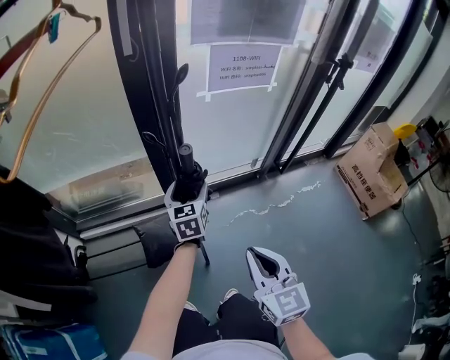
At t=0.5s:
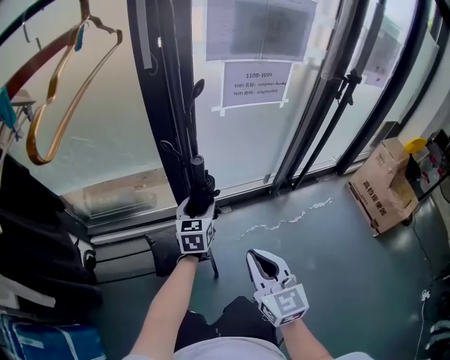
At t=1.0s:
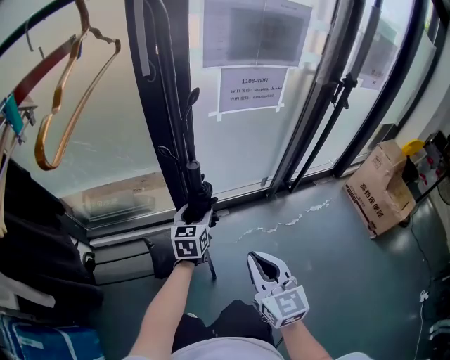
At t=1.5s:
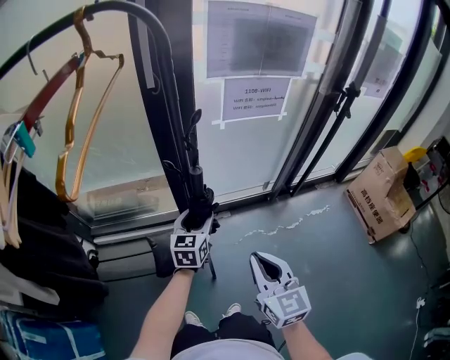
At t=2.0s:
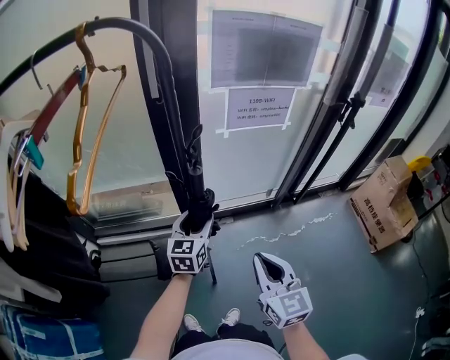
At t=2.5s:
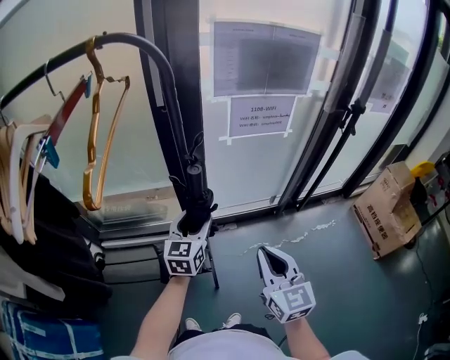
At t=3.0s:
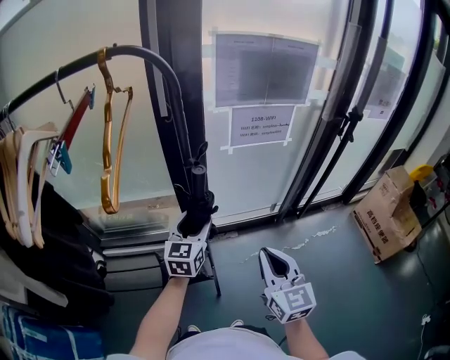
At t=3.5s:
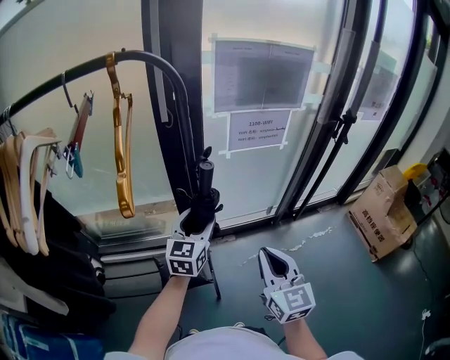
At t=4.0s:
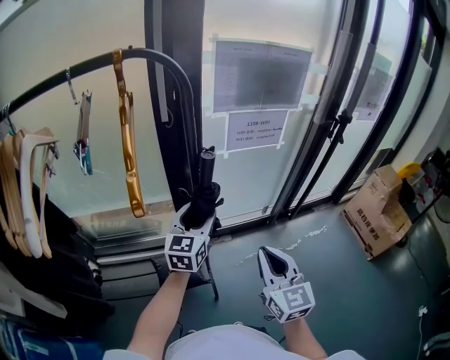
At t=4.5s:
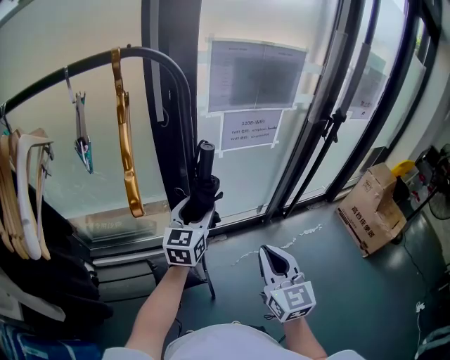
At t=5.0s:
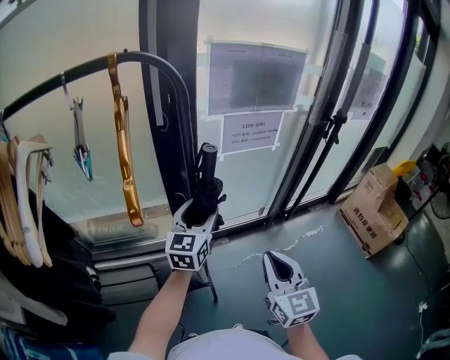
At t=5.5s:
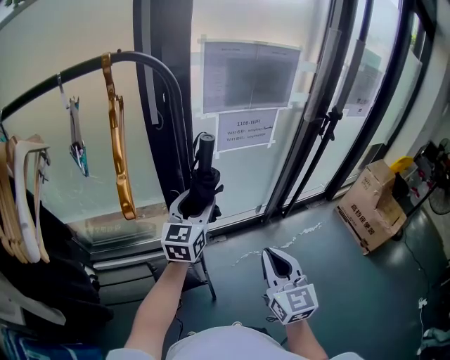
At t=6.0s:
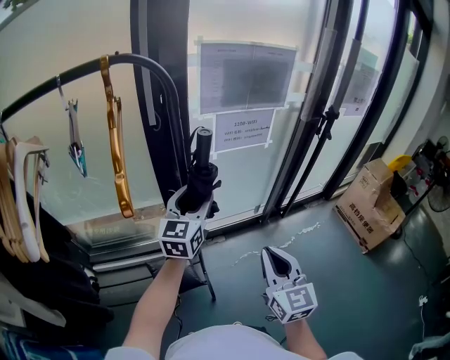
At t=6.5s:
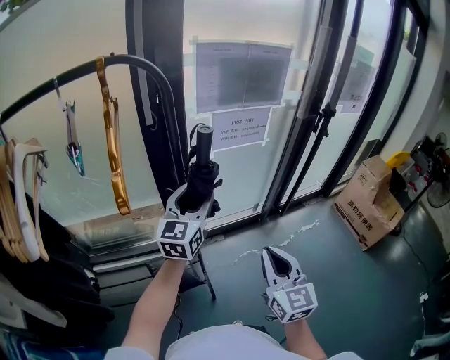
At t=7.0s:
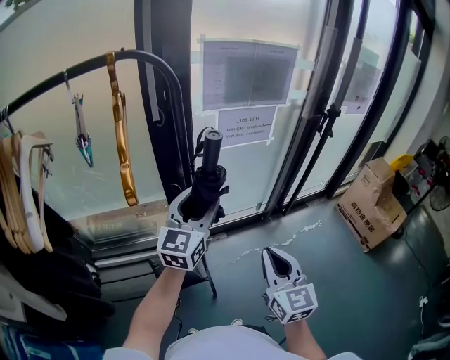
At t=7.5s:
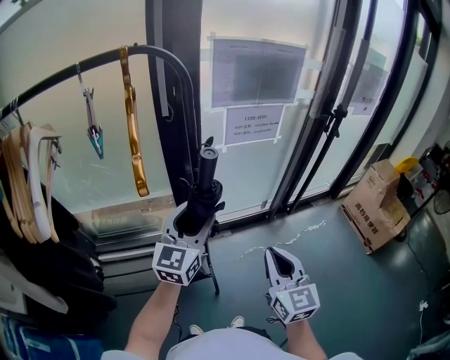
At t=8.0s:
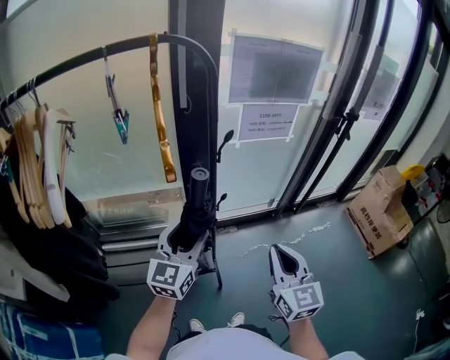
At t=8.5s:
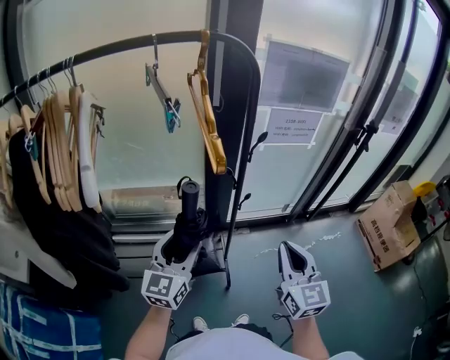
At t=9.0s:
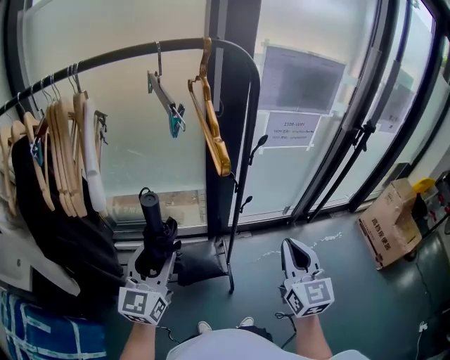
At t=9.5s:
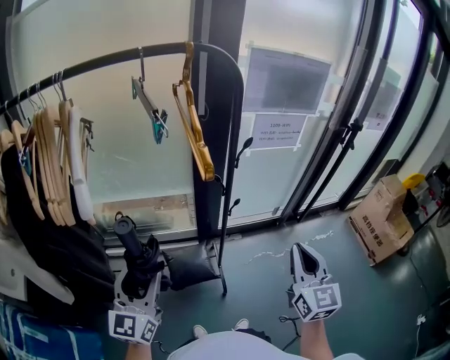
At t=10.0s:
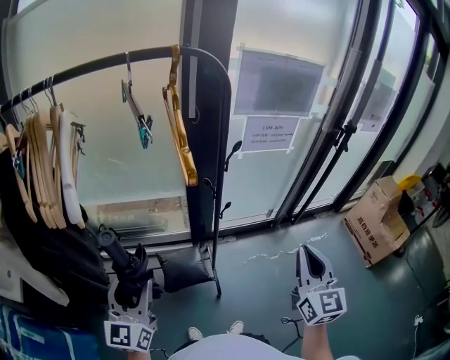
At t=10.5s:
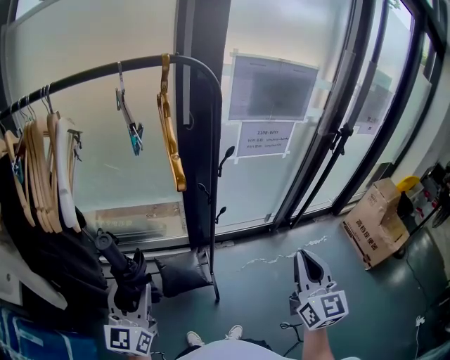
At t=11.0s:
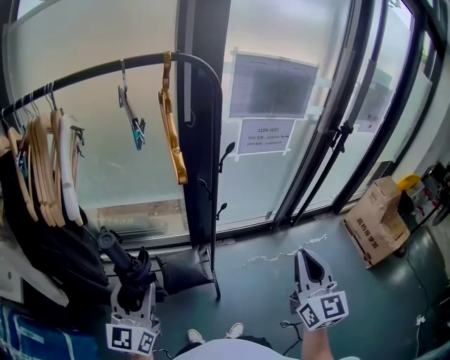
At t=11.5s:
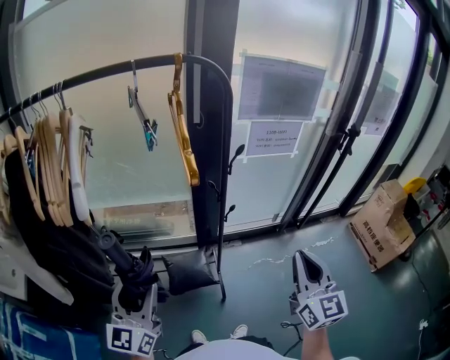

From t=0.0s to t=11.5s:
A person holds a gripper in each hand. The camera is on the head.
From t=0.0s to t=2.0s: Both grippers move upward, approximately 10 cm. The left gripper closes its fingers.
From t=2.0s to t=4.0s: The right gripper shifts some 5 cm upward; the left gripper shifts roughly 10 cm upward.
From t=4.0s to t=6.0s: The left gripper is displaced upward by approximately 5 cm.
From t=6.0s to t=7.5s: The left gripper is displaced backward by roughly 10 cm.
From t=7.5s to t=9.5s: The left gripper heads to the left and backward, covering approximately 30 cm.
From t=9.5s to t=11.5s: The grippers move only a little.

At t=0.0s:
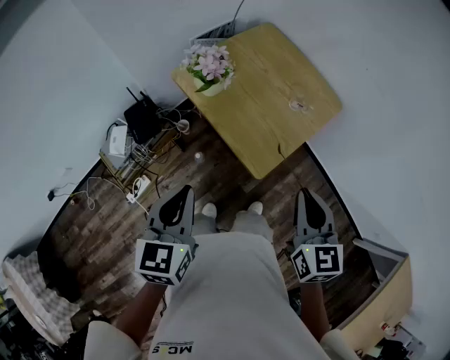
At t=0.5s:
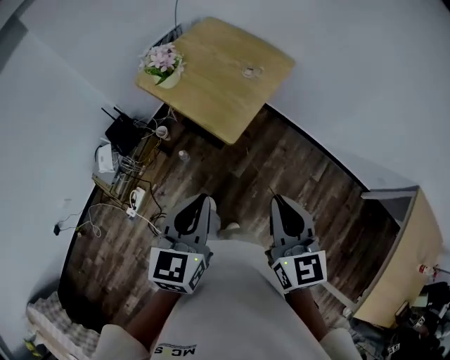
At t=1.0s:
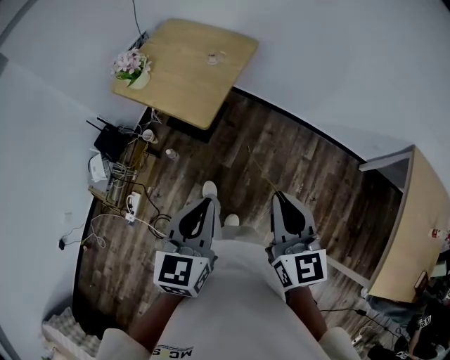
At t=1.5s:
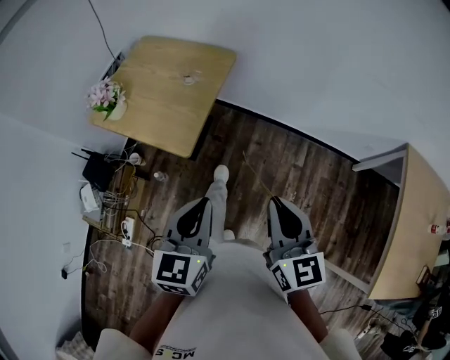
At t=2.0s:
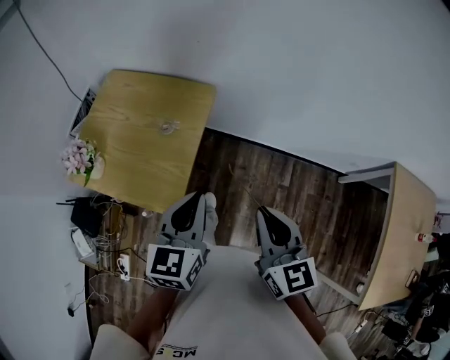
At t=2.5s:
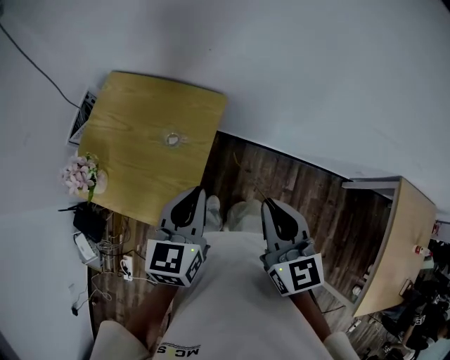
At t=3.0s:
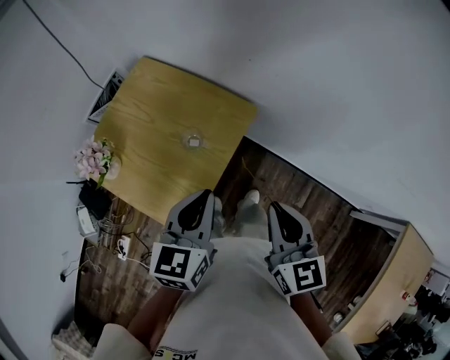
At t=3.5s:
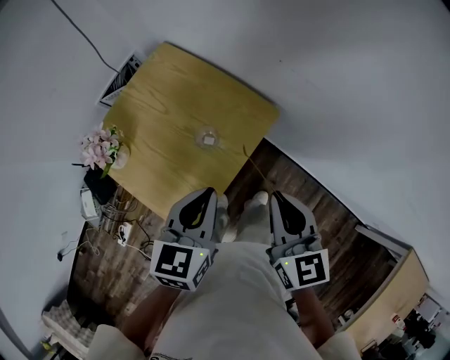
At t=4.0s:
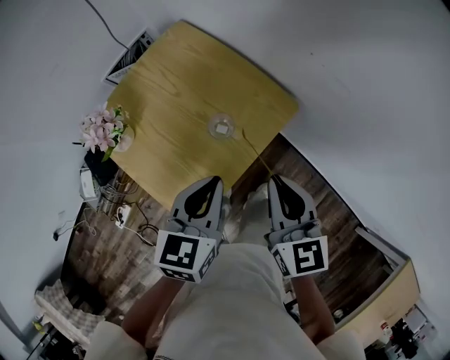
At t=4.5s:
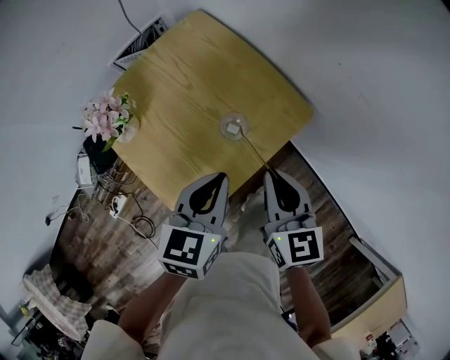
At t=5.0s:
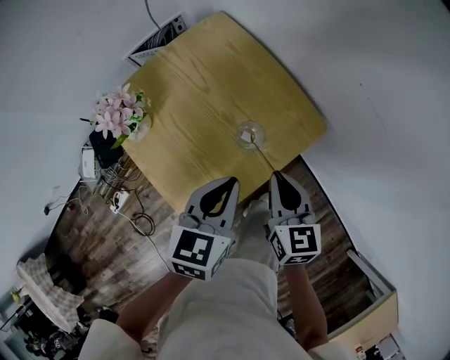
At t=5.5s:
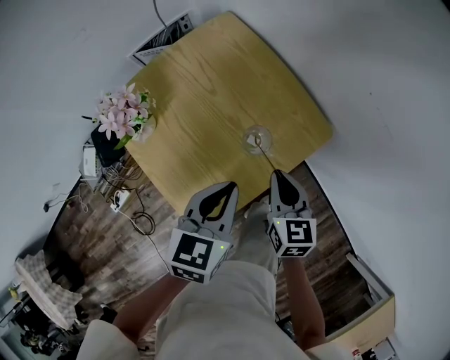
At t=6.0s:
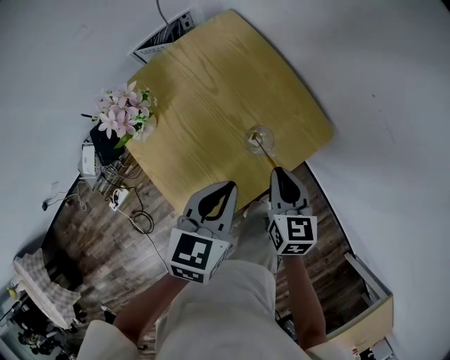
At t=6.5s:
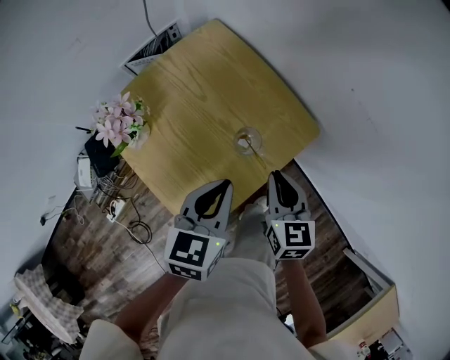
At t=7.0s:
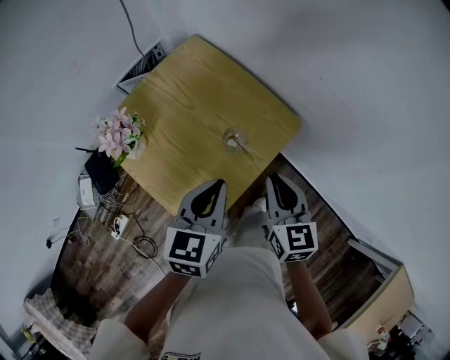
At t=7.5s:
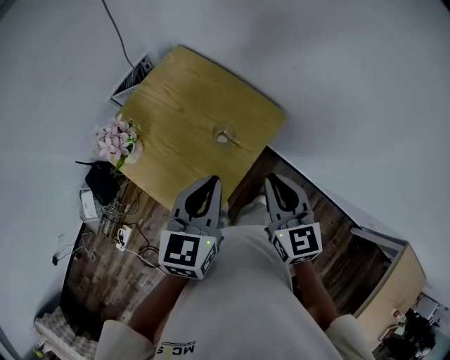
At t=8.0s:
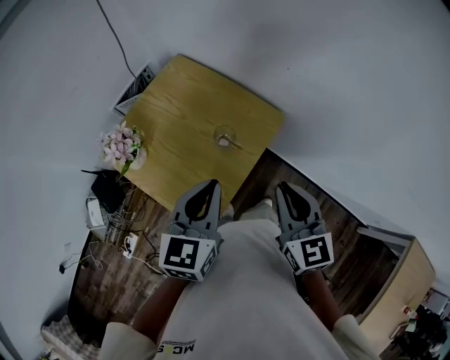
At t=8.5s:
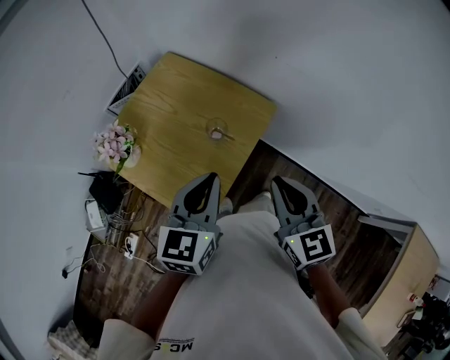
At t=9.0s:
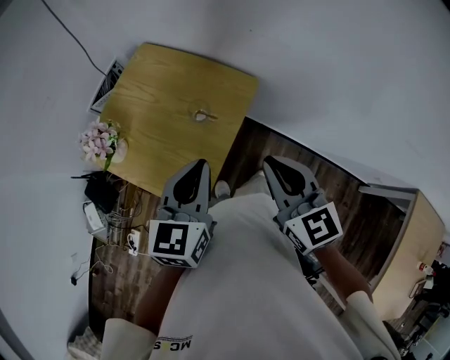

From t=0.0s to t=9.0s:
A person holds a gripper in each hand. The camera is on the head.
From t=0.0s to t=2.0s: The right gripper ends up roughly 25 cm from where it was, and turns by about 20 degrees; the left gripper changes place by approximately 35 cm, and swivels roughly 30 degrees.
From t=2.0s to t=4.5s: The right gripper ends up about 35 cm from where it was, and rotates roughly 30 degrees. Meanwhile the left gripper shifts by roughly 25 cm, and changes its angle by about 30 degrees.
From t=4.5s to t=7.0s: The right gripper moves some 10 cm downward and comes back.
From t=7.0s to t=9.0s: The right gripper travels backward and upward by approximately 15 cm. Meanwhile the left gripper shifts approximately 10 cm backward and upward.

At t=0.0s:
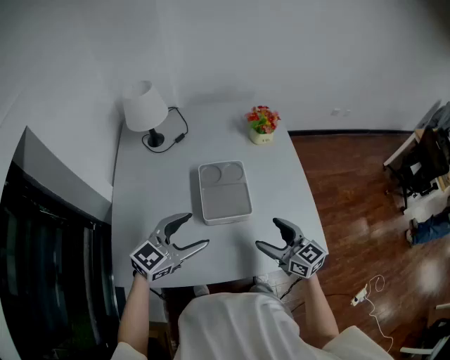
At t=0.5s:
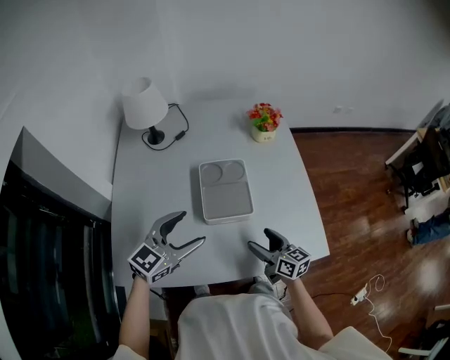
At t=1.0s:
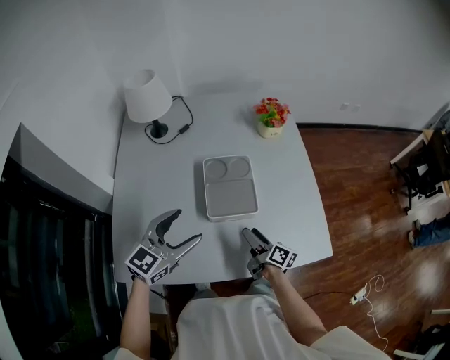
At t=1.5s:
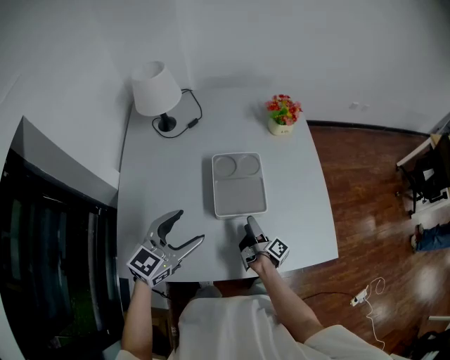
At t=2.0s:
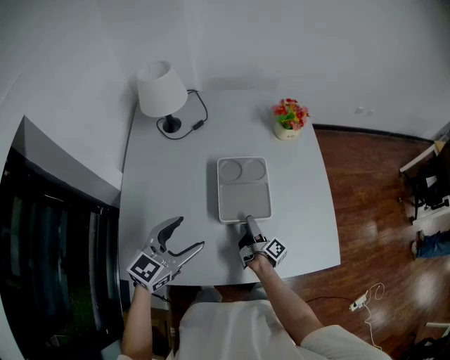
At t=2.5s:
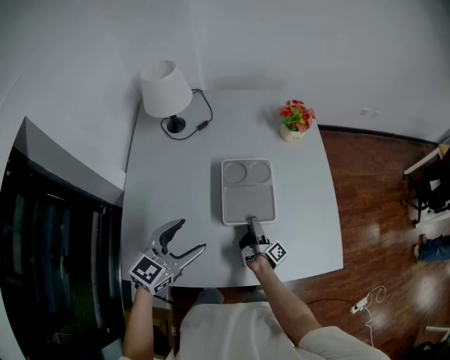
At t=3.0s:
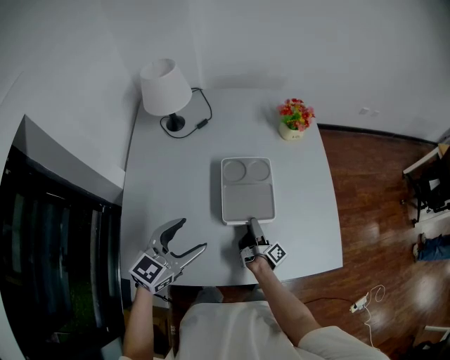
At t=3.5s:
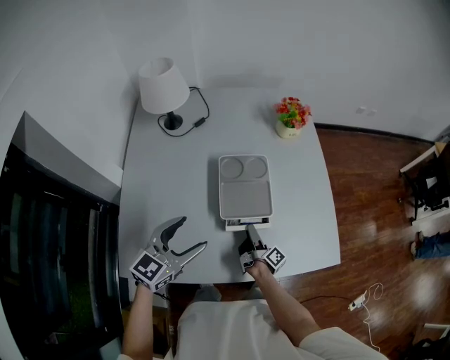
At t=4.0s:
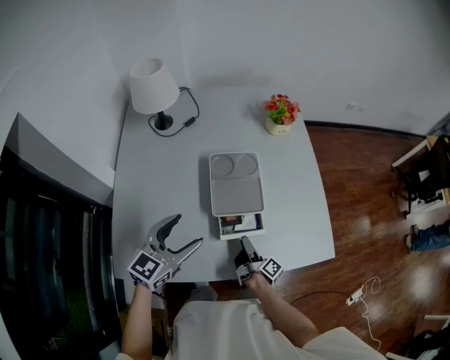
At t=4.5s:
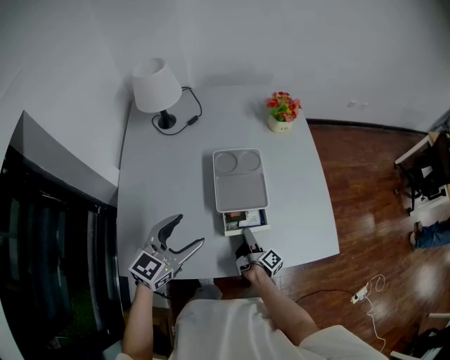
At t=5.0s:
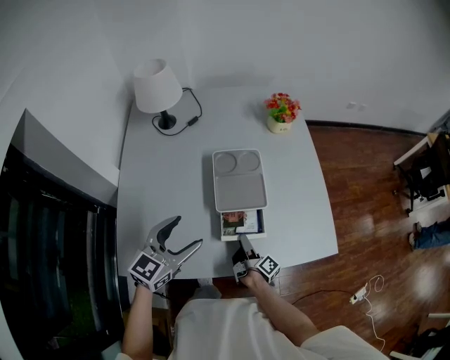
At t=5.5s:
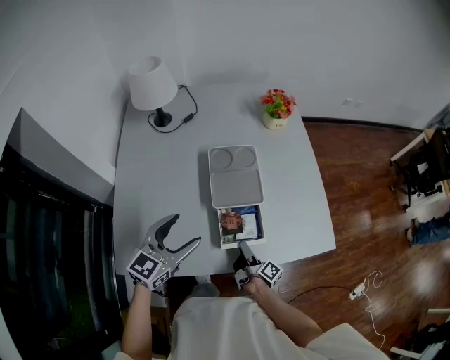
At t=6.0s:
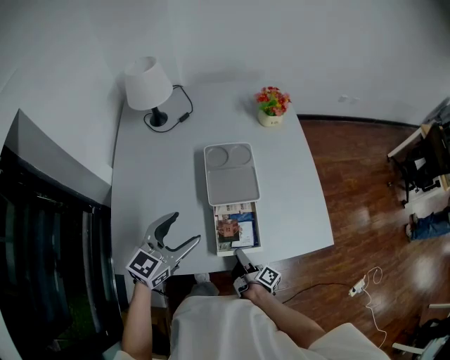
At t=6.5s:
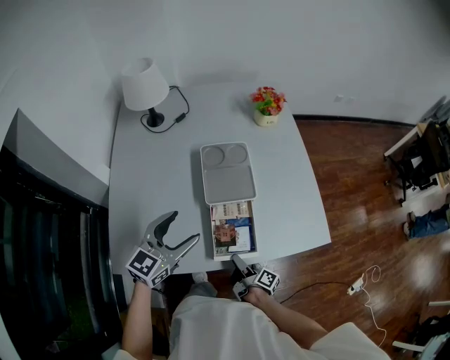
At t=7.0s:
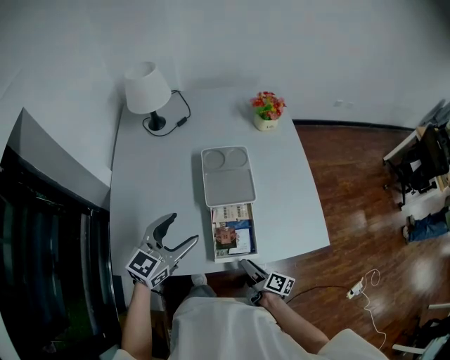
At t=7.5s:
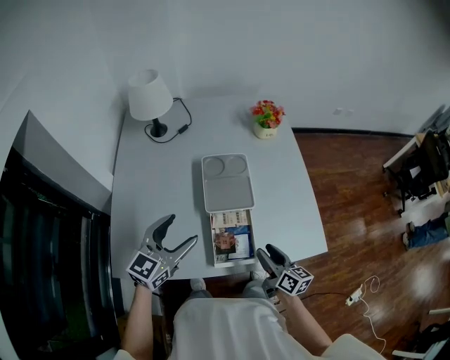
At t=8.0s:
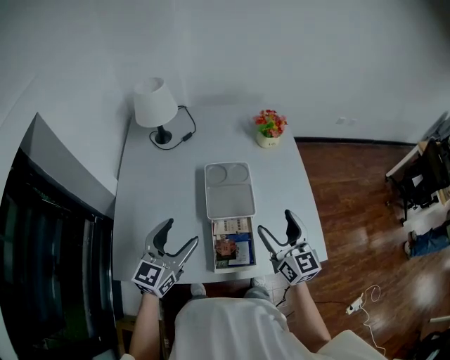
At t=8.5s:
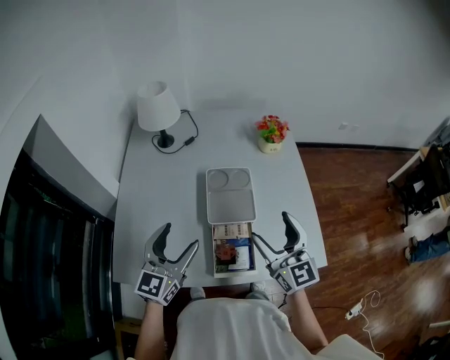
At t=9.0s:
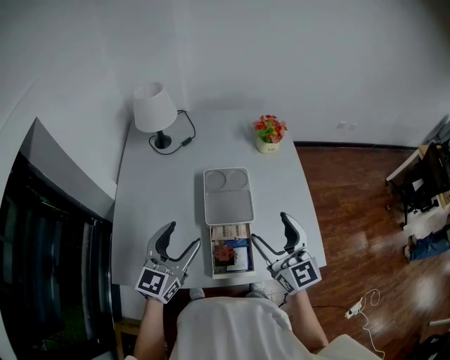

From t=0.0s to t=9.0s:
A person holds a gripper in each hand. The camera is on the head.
From t=0.0s to t=2.0s: The right gripper heads downward, to the left and forward, covering roughly 25 cm, and rolls clockwise, seen from behind, by about 80 degrees; the left gripper travels to the left by approximately 5 cm.
From t=2.0s to t=4.5s: The right gripper goes about 5 cm backward.
From t=4.5s to t=7.0s: The right gripper goes roughly 15 cm backward, and rotates about 30 degrees.
From t=7.0s to t=9.0s: The right gripper goes about 35 cm upward and forward, rolls counterclockwise, seen from behind, by some 80 degrees, and opens its fingers. The left gripper moves upward, approximately 5 cm.
